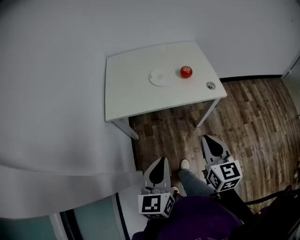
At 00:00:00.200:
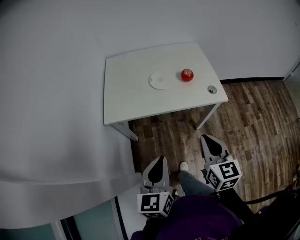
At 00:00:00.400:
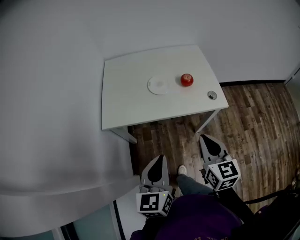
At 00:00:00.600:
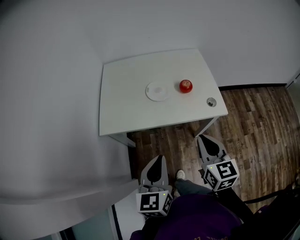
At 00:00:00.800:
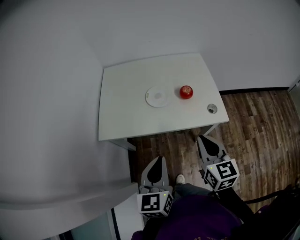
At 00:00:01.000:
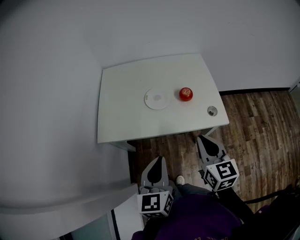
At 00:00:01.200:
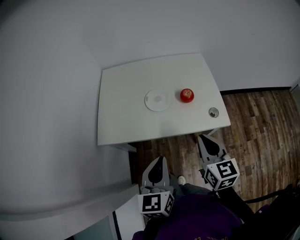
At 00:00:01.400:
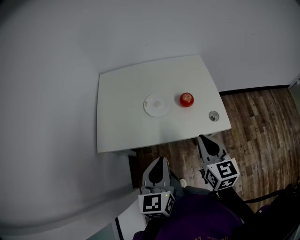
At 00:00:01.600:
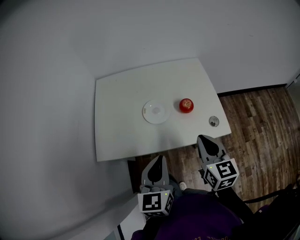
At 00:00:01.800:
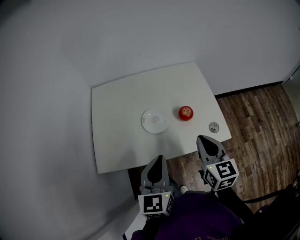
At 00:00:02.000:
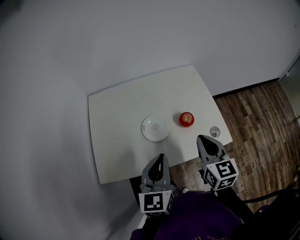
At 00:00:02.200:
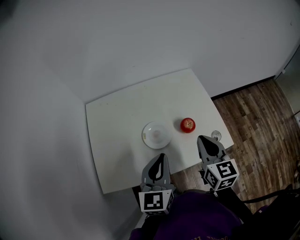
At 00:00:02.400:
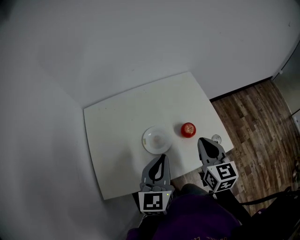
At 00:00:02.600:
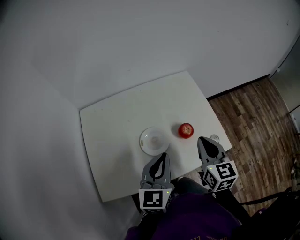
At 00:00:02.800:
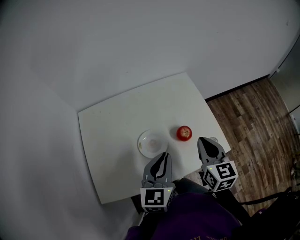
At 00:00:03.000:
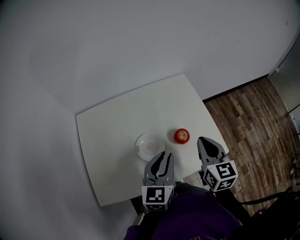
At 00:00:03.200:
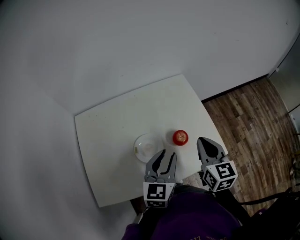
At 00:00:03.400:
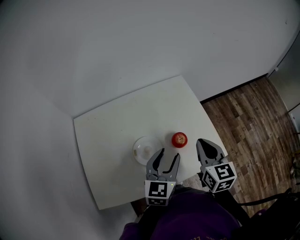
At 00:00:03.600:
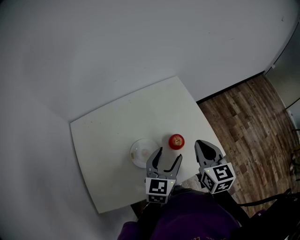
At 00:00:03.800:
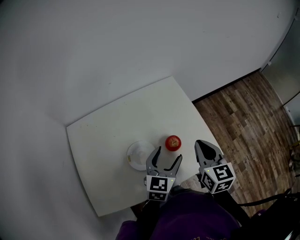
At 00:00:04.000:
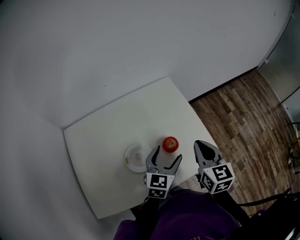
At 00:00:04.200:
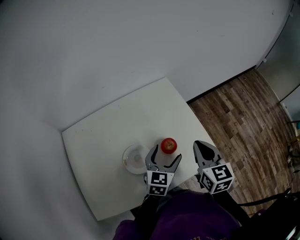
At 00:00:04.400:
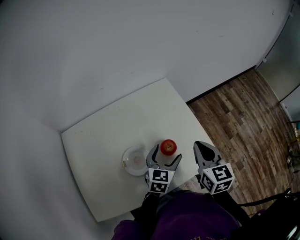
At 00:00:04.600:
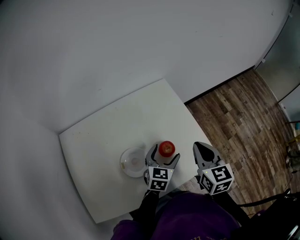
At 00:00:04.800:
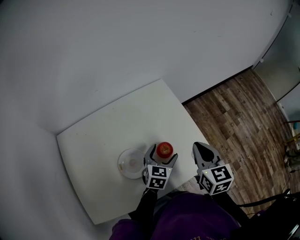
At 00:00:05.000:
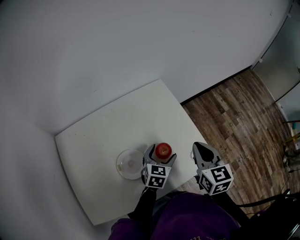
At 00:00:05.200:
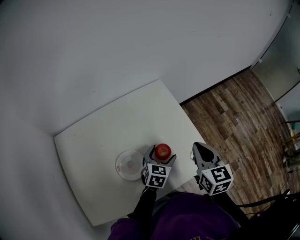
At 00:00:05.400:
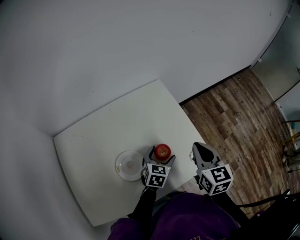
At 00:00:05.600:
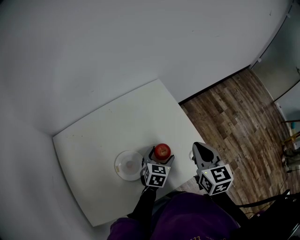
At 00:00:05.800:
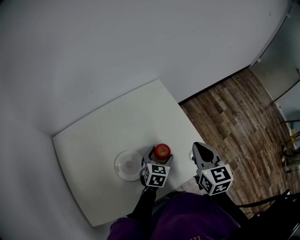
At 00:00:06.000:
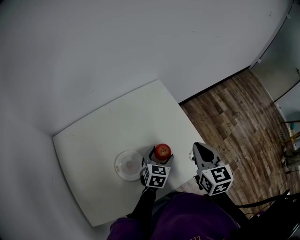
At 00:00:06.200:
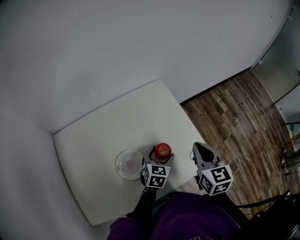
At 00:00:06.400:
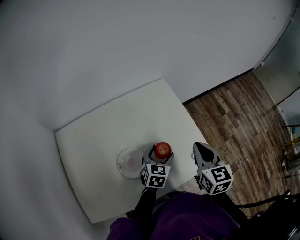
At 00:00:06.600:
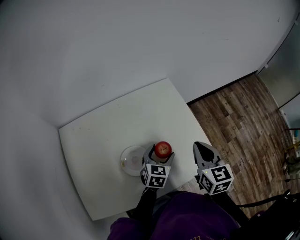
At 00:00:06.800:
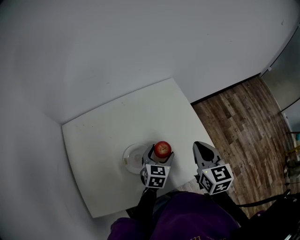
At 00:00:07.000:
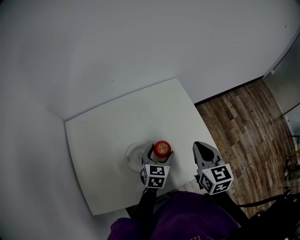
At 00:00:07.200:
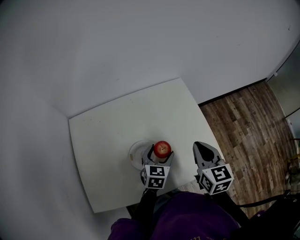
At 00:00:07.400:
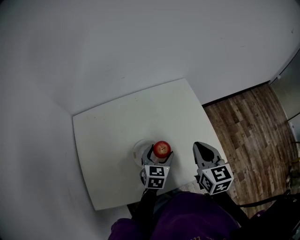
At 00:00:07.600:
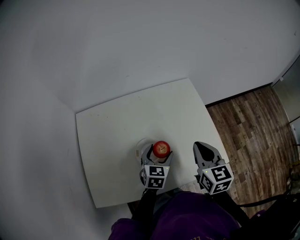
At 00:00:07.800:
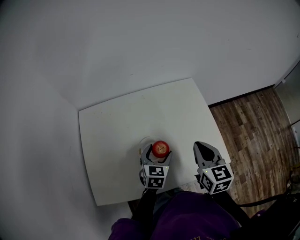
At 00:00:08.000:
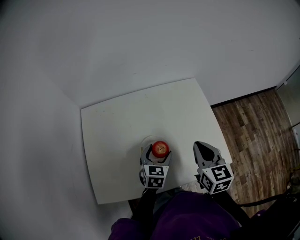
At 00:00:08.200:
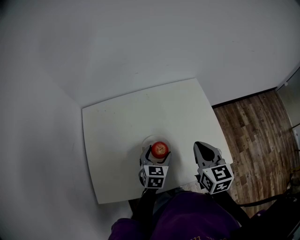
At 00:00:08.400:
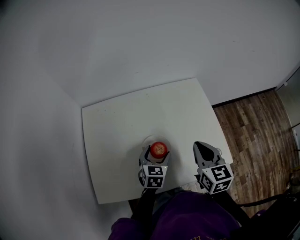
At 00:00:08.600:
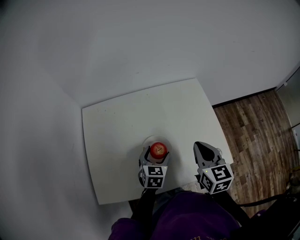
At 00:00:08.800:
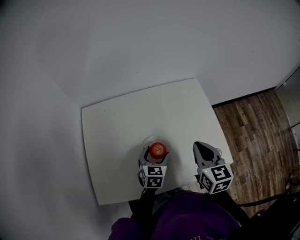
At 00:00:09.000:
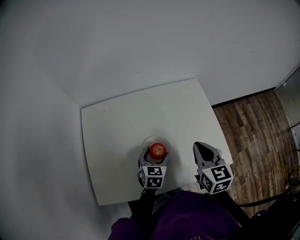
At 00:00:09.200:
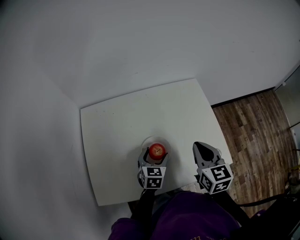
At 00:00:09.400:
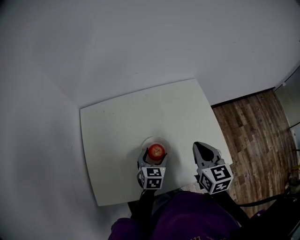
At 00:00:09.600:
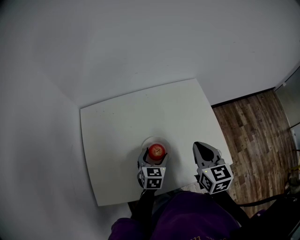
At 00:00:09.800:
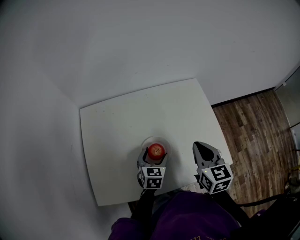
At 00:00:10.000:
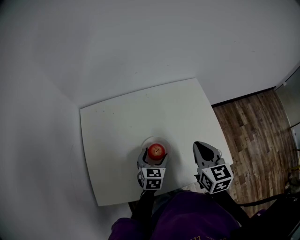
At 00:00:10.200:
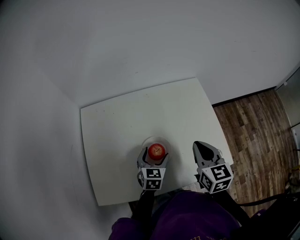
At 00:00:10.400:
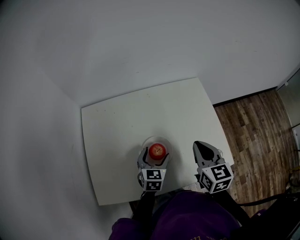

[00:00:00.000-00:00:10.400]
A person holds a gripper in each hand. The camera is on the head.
00:00:00.000 to 00:00:01.400: Both grippers move forward, some 20 cm.
00:00:01.400 to 00:00:03.000: The grippers both shift forward by some 20 cm. The left gripper rotates approximately 20 degrees.
00:00:03.000 to 00:00:04.400: The left gripper moves downward, forward and to the right, approximately 15 cm, changes its angle by some 20 degrees, and opens, while the right gripper moves approximately 5 cm.
00:00:04.400 to 00:00:06.000: The left gripper goes roughly 5 cm downward.
00:00:06.000 to 00:00:07.400: Both grippers travel together to the left, about 10 cm.
00:00:07.400 to 00:00:09.000: The left gripper travels to the left by approximately 5 cm.
00:00:09.000 to 00:00:10.400: The two grippers keep their place.

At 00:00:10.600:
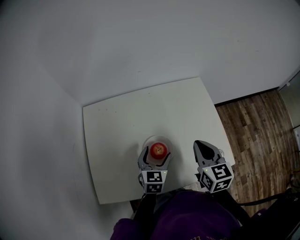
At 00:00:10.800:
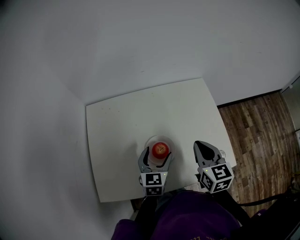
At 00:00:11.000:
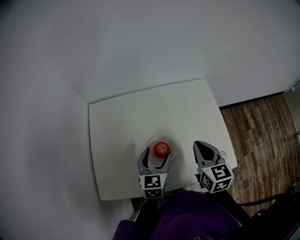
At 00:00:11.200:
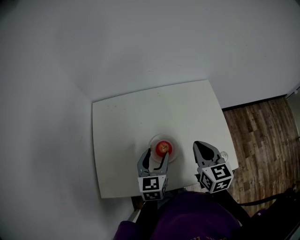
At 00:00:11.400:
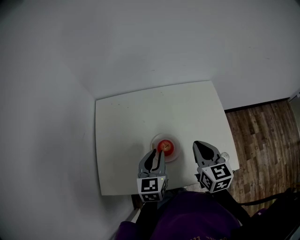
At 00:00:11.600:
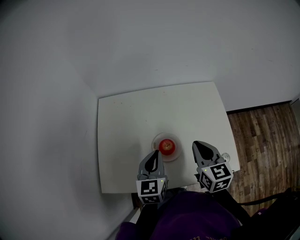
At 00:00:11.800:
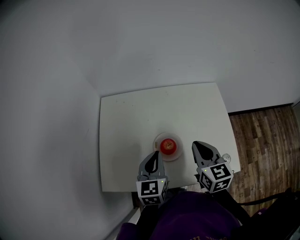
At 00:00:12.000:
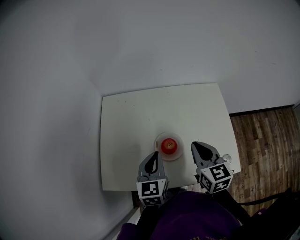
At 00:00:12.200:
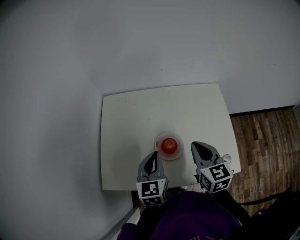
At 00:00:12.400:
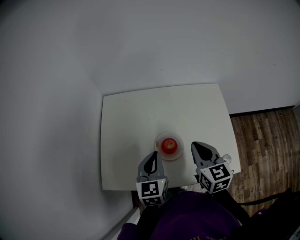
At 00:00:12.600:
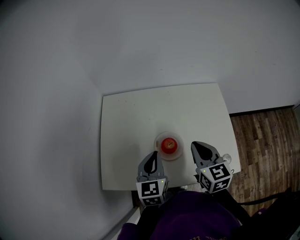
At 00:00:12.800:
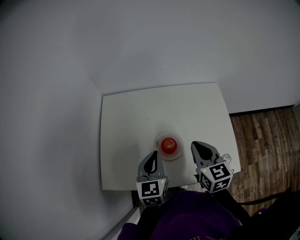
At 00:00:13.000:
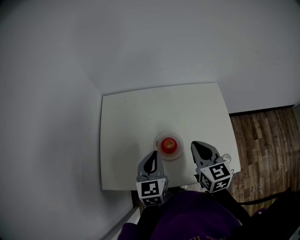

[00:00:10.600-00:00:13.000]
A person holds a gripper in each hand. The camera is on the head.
00:00:10.600 to 00:00:11.800: The left gripper heads upward and to the left, covering about 10 cm, and closes up.
00:00:11.800 to 00:00:13.000: Neither gripper changes place.

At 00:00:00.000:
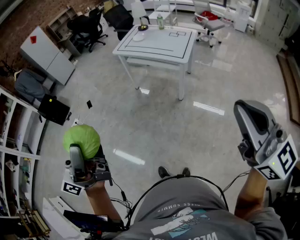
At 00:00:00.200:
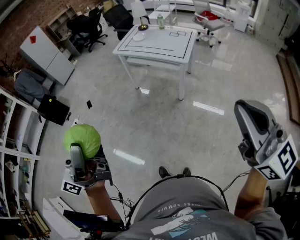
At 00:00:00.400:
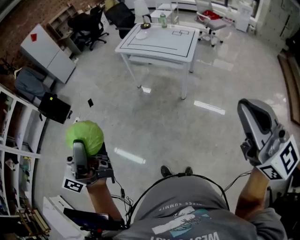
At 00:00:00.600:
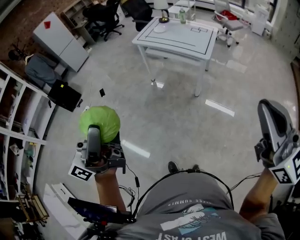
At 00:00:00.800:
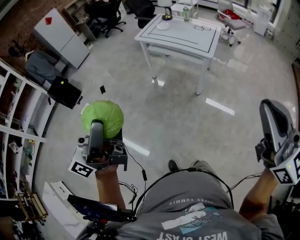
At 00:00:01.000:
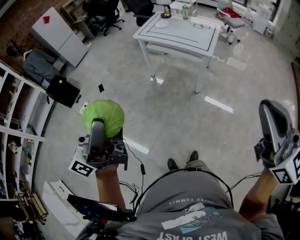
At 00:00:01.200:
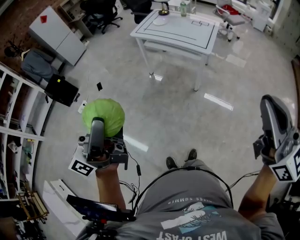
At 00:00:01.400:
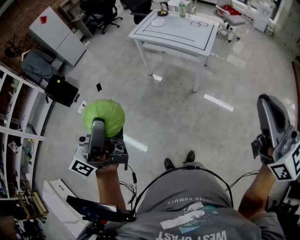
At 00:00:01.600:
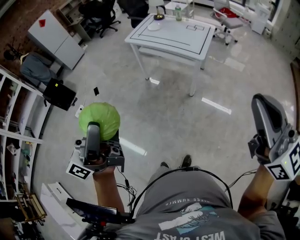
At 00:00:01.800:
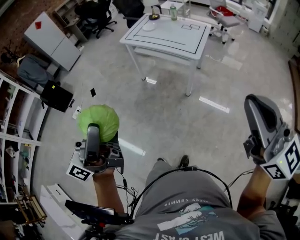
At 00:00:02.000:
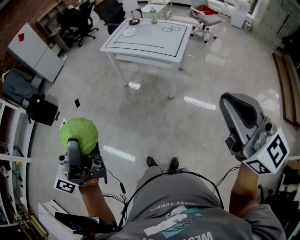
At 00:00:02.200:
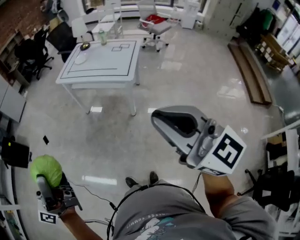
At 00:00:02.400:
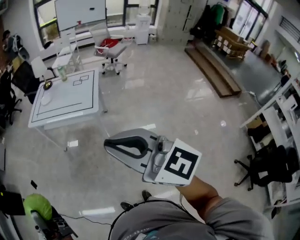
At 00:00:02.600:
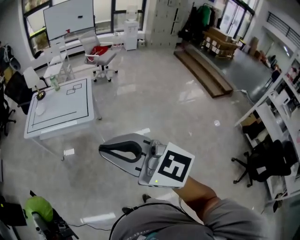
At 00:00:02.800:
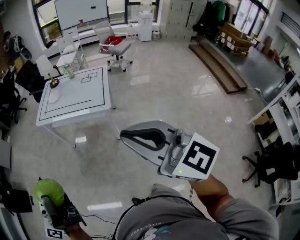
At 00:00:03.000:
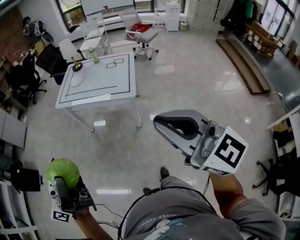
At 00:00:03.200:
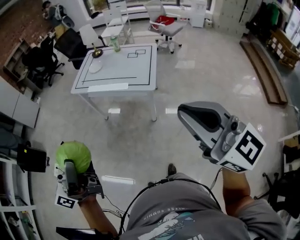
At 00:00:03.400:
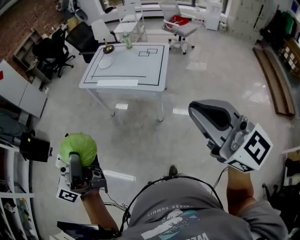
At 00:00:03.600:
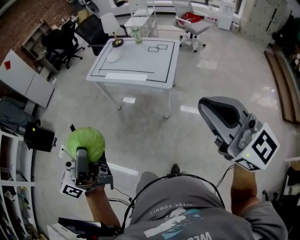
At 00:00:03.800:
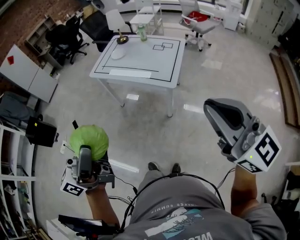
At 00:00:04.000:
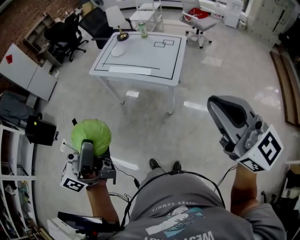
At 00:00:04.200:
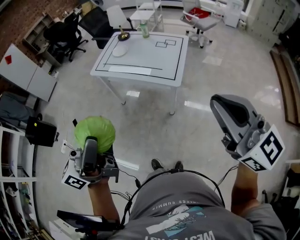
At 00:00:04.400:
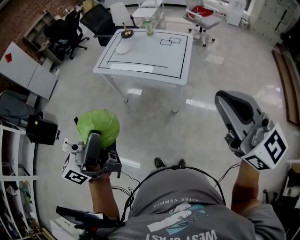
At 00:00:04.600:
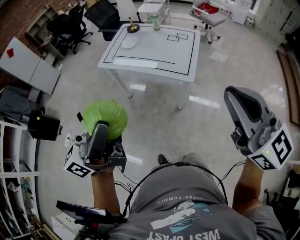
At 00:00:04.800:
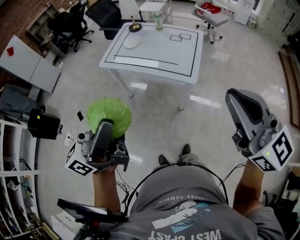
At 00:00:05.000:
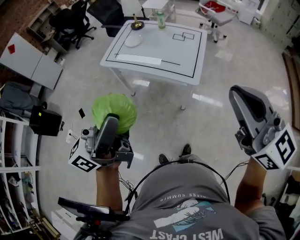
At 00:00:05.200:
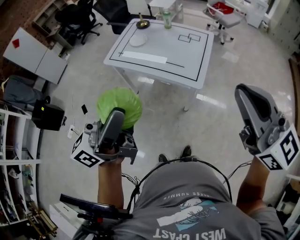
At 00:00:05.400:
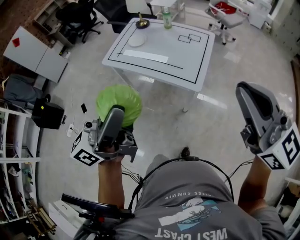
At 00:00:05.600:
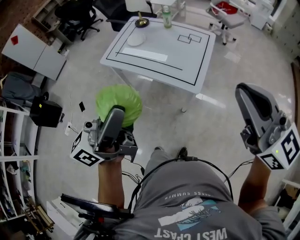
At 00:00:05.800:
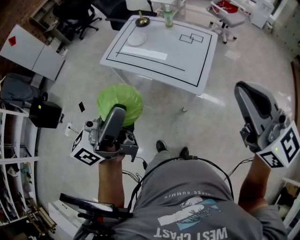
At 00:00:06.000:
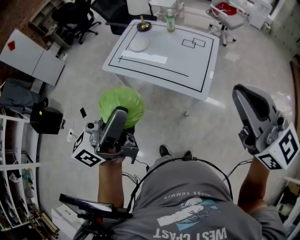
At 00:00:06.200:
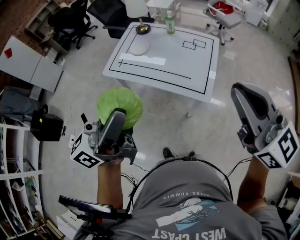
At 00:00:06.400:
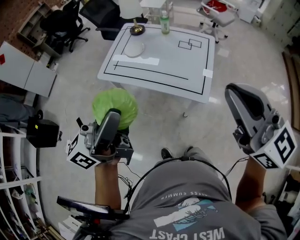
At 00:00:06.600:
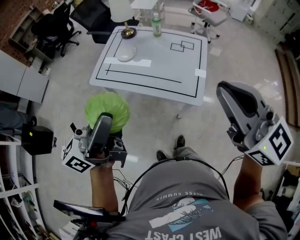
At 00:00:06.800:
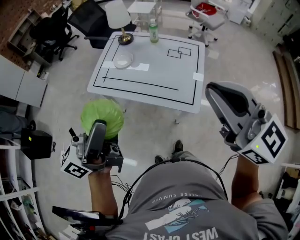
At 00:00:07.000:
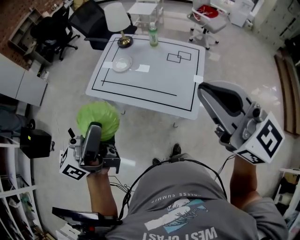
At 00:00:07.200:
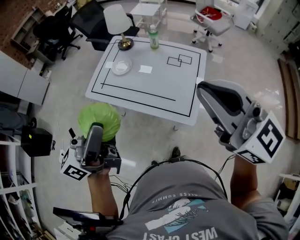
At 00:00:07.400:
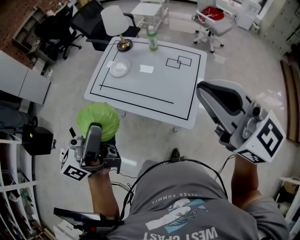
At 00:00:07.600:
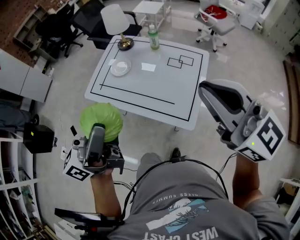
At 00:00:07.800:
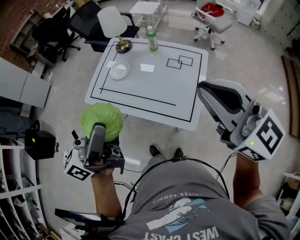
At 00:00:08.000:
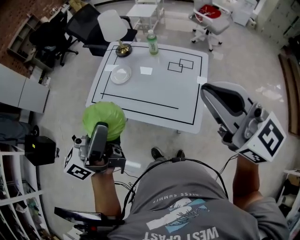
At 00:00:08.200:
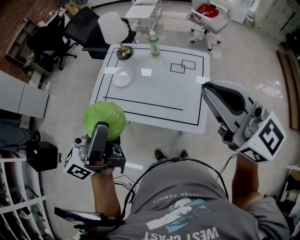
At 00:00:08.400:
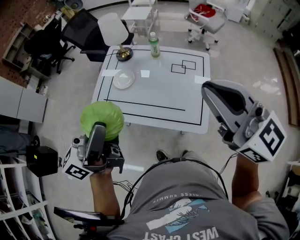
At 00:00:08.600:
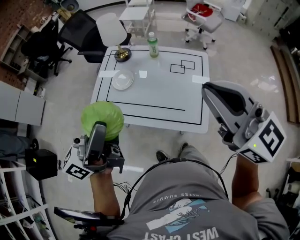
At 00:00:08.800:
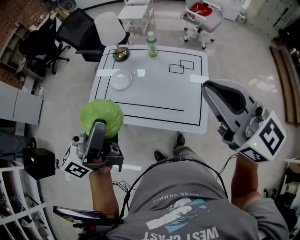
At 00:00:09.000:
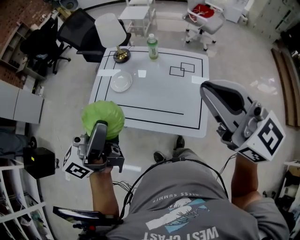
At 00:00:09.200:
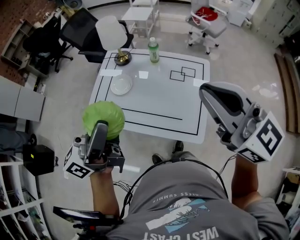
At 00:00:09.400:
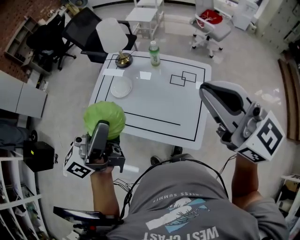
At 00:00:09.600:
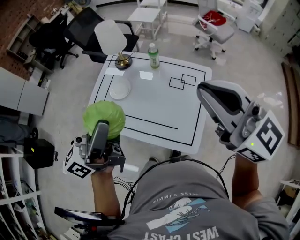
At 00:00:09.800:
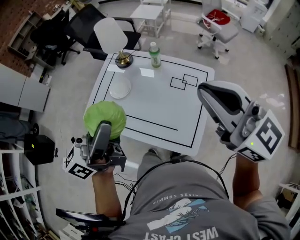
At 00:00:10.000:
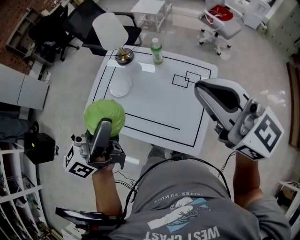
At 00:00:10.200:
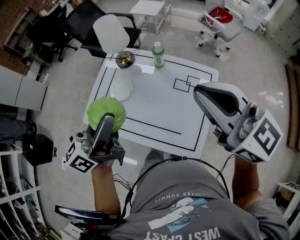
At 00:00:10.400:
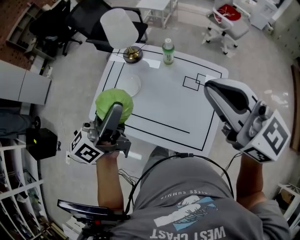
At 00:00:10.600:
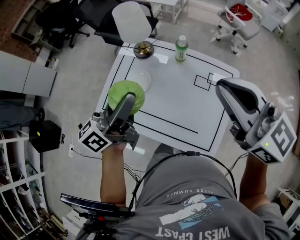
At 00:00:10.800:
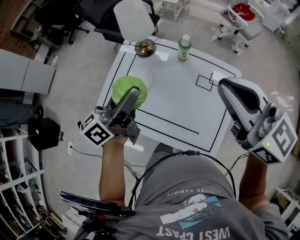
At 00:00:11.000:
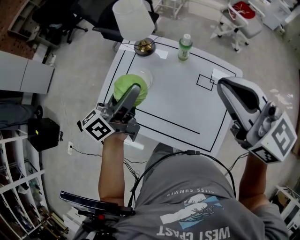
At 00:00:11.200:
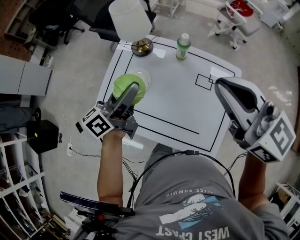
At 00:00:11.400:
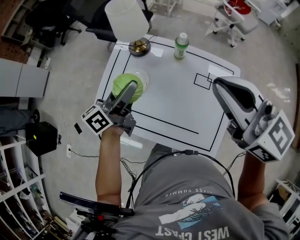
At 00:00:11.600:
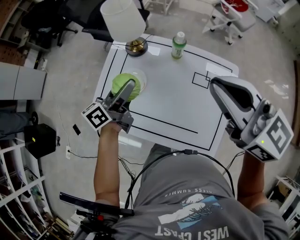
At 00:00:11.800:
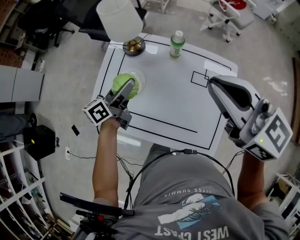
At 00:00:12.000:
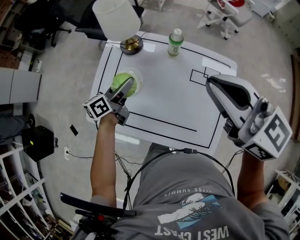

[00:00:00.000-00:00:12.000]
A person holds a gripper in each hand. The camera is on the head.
00:00:00.000 to 00:00:01.600: Both grippers move forward, approximately 5 cm.
00:00:01.600 to 00:00:03.000: The two grippers go about 15 cm forward.
00:00:03.000 to 00:00:04.400: The grippers both shift forward by about 10 cm.
00:00:04.400 to 00:00:06.000: Both grippers travel together forward, some 20 cm.
00:00:06.000 to 00:00:07.600: Both grippers move forward, some 15 cm.
00:00:07.600 to 00:00:09.000: The right gripper heads to the left and forward, covering approximately 10 cm, while the left gripper is displaced forward and to the left by some 10 cm.
00:00:09.000 to 00:00:10.400: The right gripper is displaced forward by roughly 15 cm. The left gripper shifts about 20 cm forward and downward.
00:00:10.400 to 00:00:12.000: The left gripper moves downward and forward, roughly 30 cm, and changes its angle by about 30 degrees. Meanwhile the right gripper heads forward and downward, covering roughly 10 cm.
